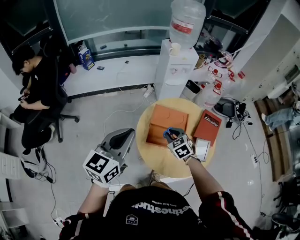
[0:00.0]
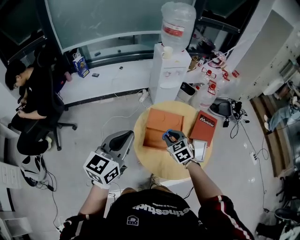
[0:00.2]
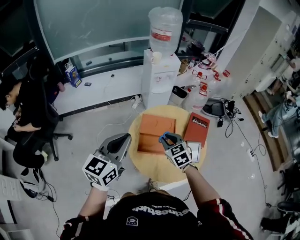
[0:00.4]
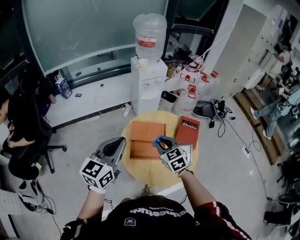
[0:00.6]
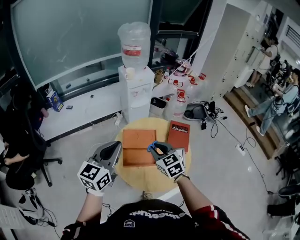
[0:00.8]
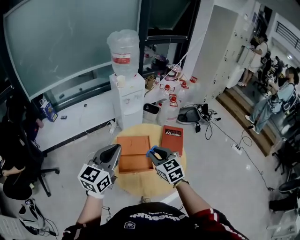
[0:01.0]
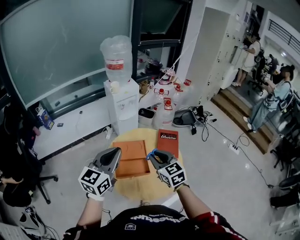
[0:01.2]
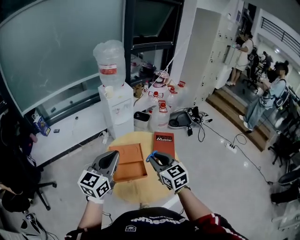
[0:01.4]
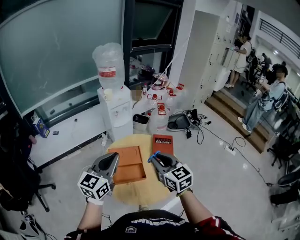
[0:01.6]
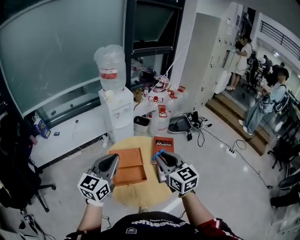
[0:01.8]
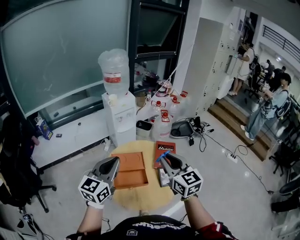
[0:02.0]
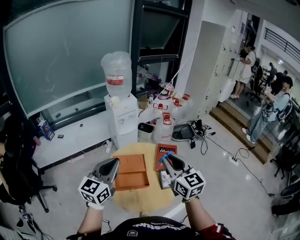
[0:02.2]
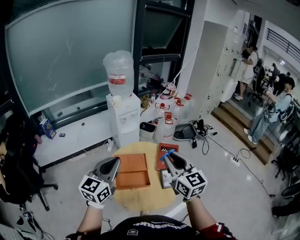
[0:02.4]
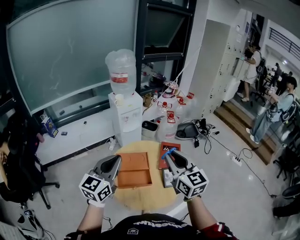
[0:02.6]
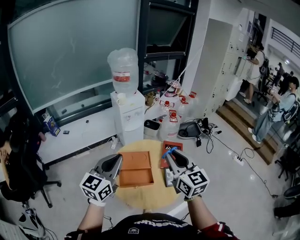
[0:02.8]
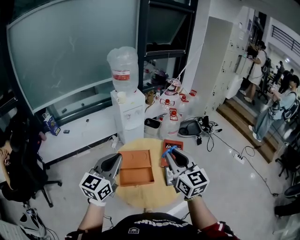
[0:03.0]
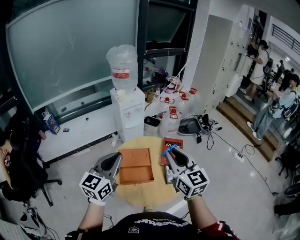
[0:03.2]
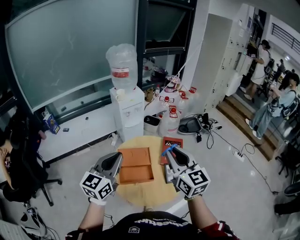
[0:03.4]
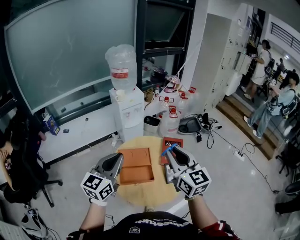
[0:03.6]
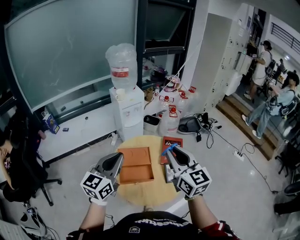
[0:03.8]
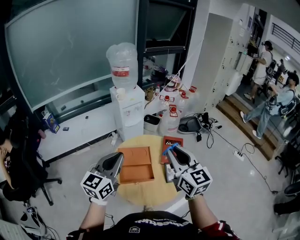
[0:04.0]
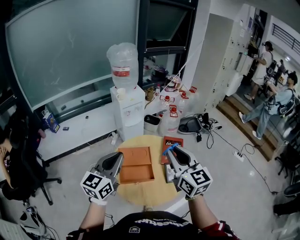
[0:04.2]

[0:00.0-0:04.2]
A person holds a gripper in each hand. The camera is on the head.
0.0 to 1.4 s: The right gripper travels upward and to the right by about 25 cm, and swivels some 40 degrees; the left gripper shifts about 15 cm to the right and forward.
1.4 to 2.8 s: The right gripper shifts about 10 cm upward.
2.8 to 4.2 s: There are only small adjustments of the grippers.

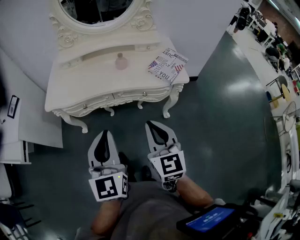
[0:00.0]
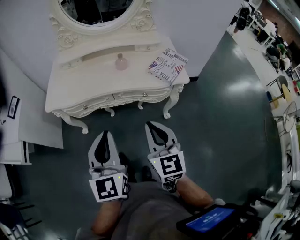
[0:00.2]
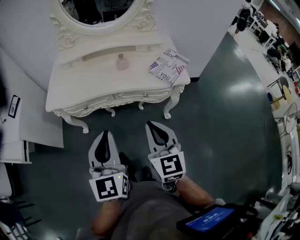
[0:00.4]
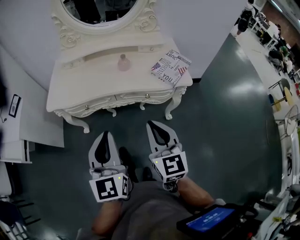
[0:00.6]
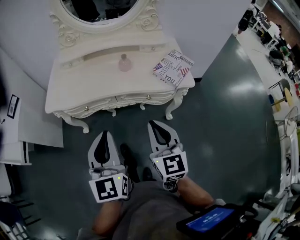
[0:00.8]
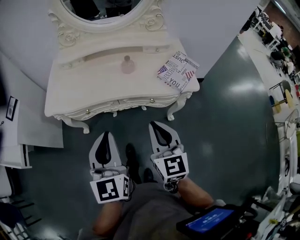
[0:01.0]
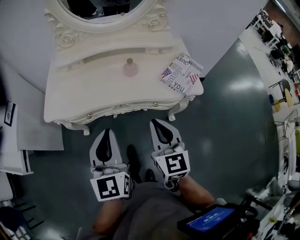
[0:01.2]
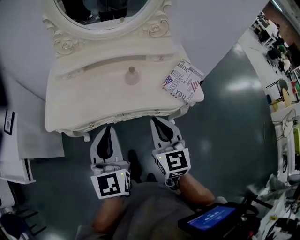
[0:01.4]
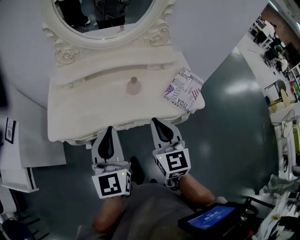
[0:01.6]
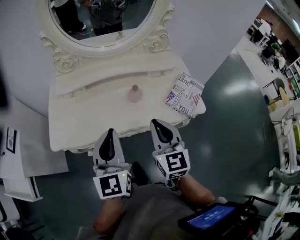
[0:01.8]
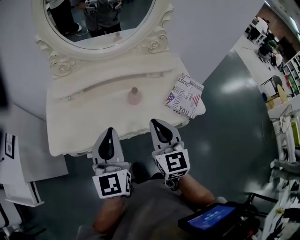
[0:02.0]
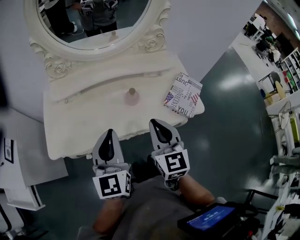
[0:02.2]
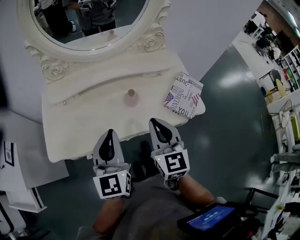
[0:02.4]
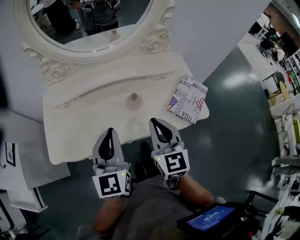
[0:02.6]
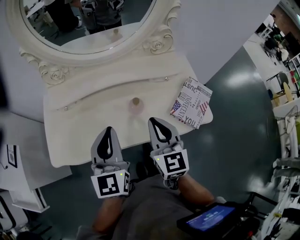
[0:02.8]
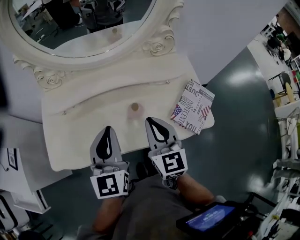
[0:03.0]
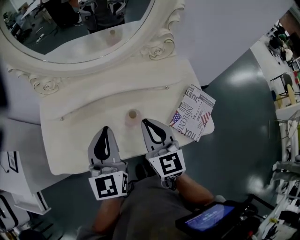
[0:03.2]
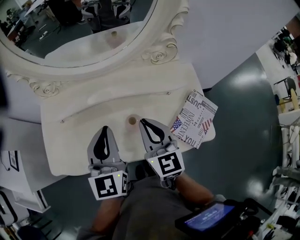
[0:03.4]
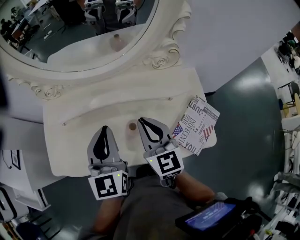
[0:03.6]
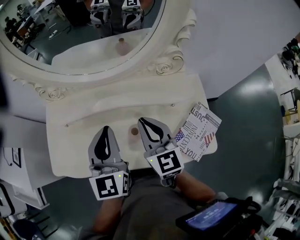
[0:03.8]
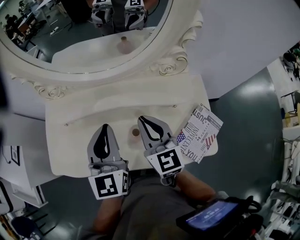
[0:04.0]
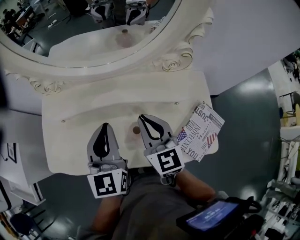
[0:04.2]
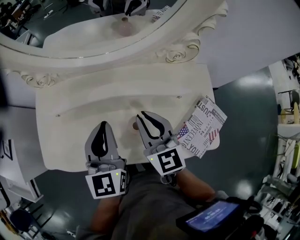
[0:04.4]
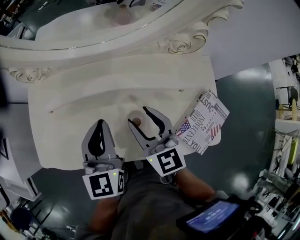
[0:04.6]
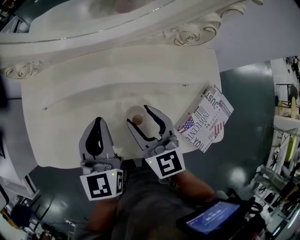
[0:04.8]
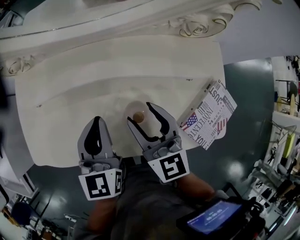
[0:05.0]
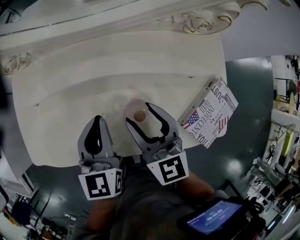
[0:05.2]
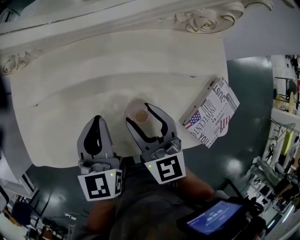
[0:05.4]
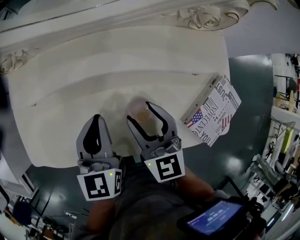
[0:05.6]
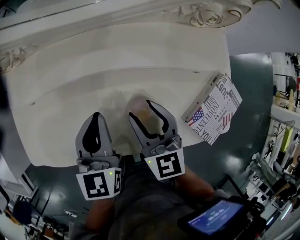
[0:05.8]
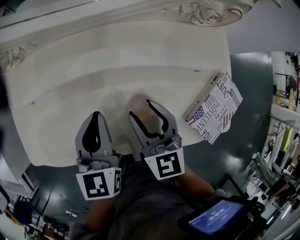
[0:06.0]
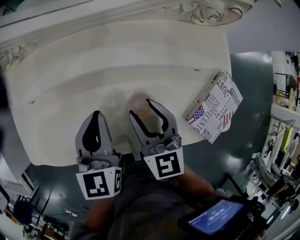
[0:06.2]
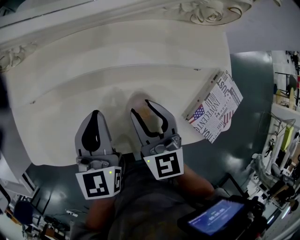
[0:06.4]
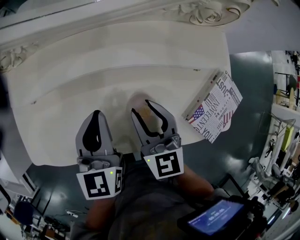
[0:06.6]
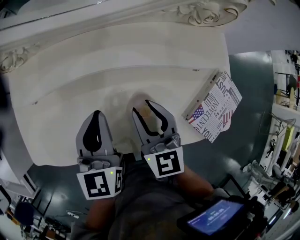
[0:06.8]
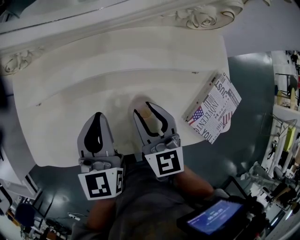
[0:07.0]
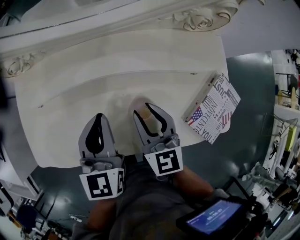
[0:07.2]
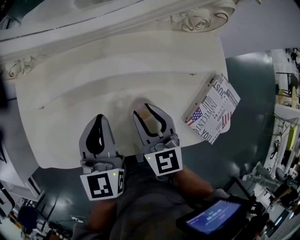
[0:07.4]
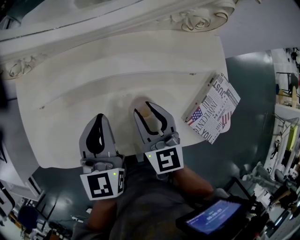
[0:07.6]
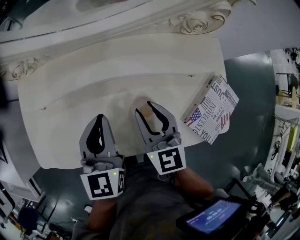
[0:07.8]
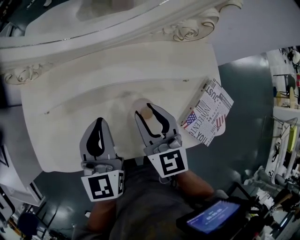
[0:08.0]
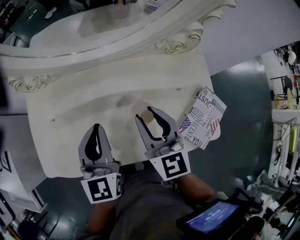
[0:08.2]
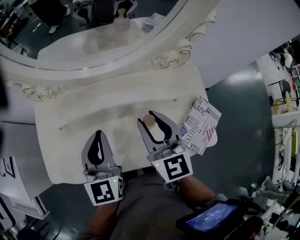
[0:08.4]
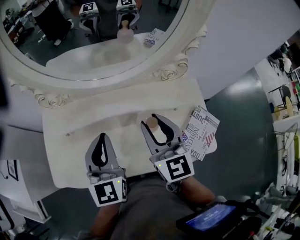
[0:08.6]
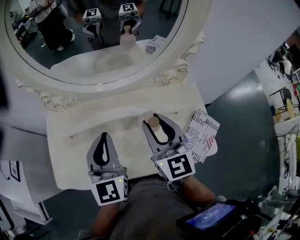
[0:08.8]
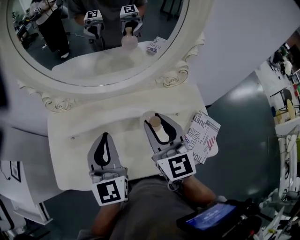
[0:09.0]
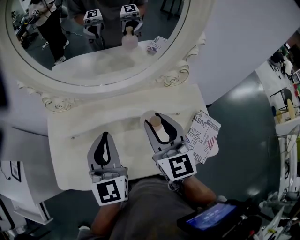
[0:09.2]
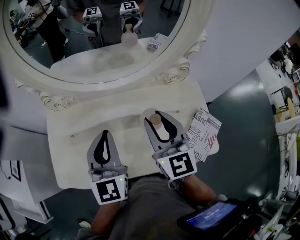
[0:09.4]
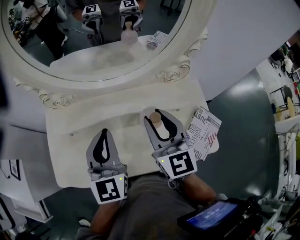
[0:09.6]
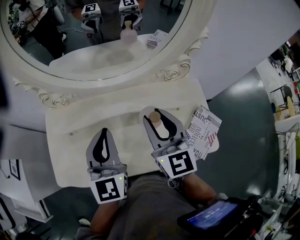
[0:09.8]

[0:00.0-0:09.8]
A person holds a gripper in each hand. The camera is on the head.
0.0 to 1.4 s: Both grippers move forward, roughly 15 cm.
1.4 to 2.8 s: The grippers both shift forward by about 15 cm.
2.8 to 4.2 s: Both grippers move forward, some 15 cm.
4.2 to 5.6 s: Both grippers travel together downward, roughly 10 cm. The right gripper opens its fingers.
5.6 to 7.0 s: There are only small adjustments of the grippers.
7.0 to 8.4 s: Both grippers travel together upward, approximately 10 cm.
8.4 to 9.8 s: The grippers both shift upward by about 5 cm.

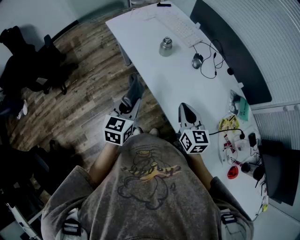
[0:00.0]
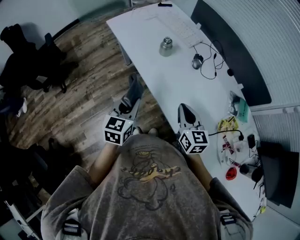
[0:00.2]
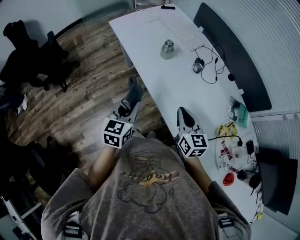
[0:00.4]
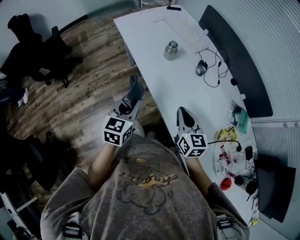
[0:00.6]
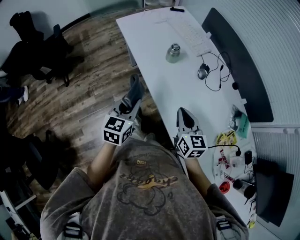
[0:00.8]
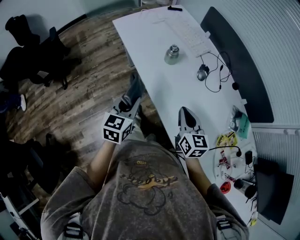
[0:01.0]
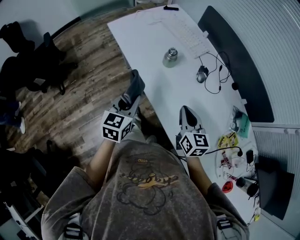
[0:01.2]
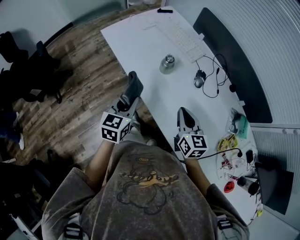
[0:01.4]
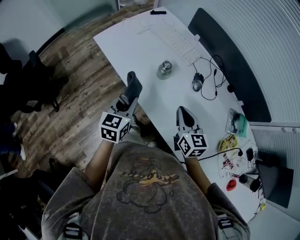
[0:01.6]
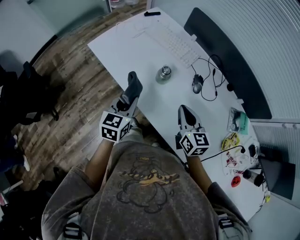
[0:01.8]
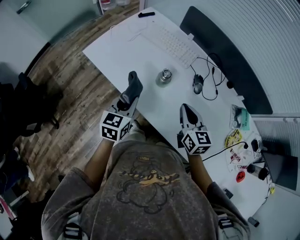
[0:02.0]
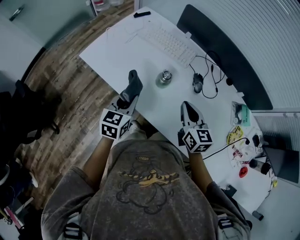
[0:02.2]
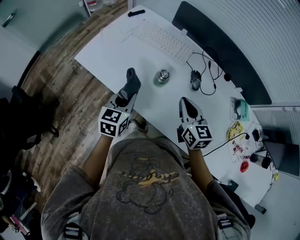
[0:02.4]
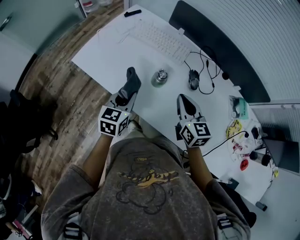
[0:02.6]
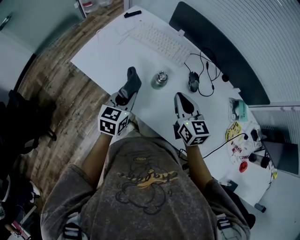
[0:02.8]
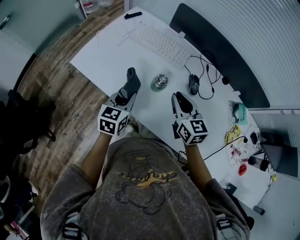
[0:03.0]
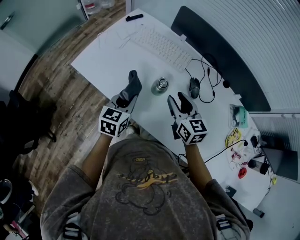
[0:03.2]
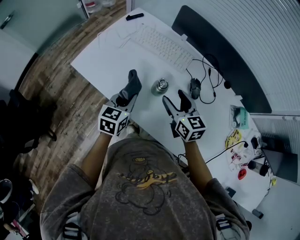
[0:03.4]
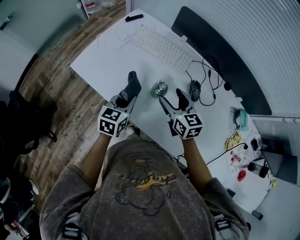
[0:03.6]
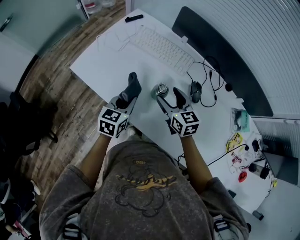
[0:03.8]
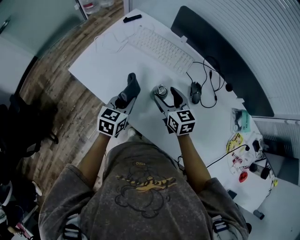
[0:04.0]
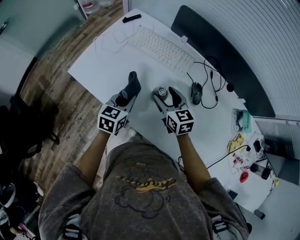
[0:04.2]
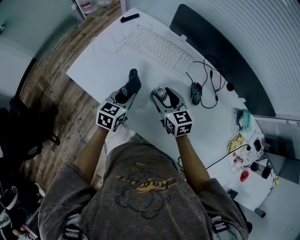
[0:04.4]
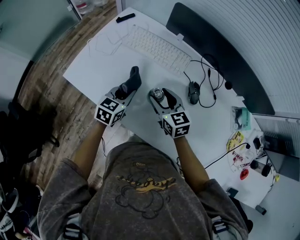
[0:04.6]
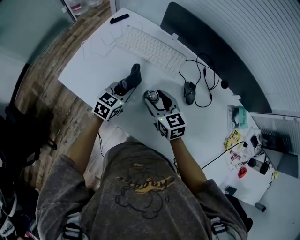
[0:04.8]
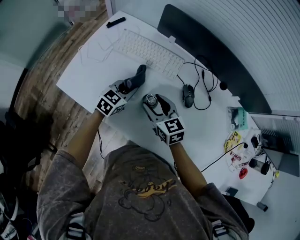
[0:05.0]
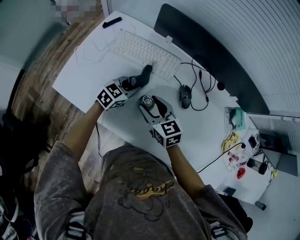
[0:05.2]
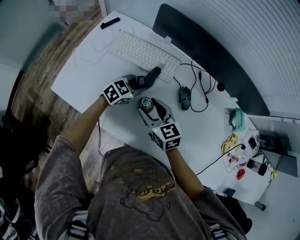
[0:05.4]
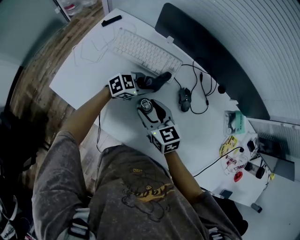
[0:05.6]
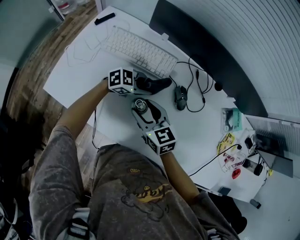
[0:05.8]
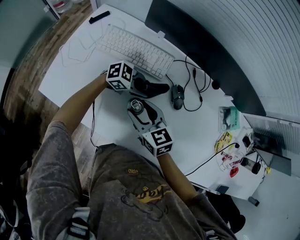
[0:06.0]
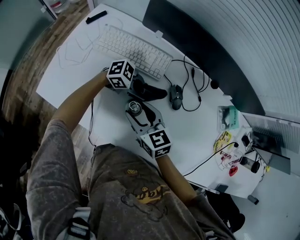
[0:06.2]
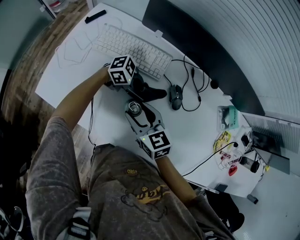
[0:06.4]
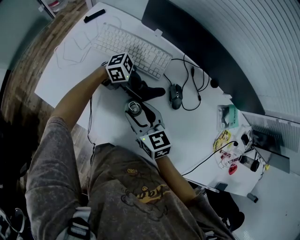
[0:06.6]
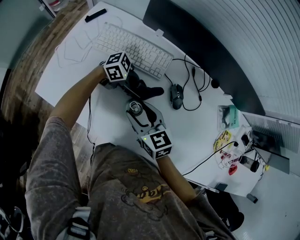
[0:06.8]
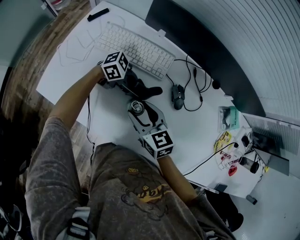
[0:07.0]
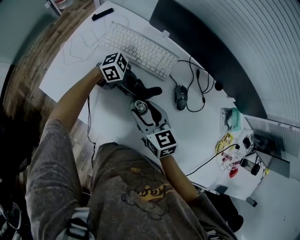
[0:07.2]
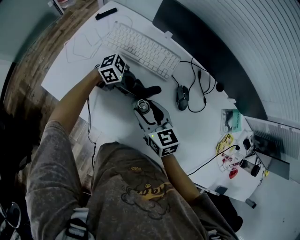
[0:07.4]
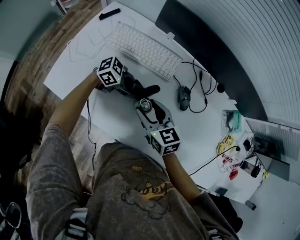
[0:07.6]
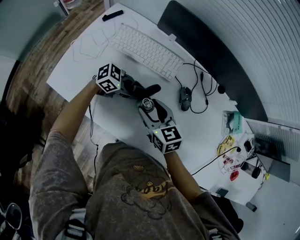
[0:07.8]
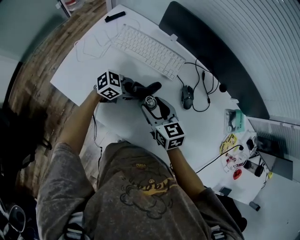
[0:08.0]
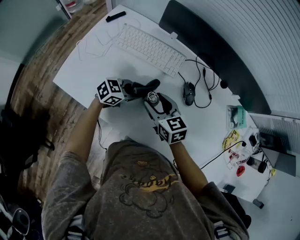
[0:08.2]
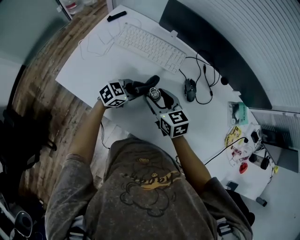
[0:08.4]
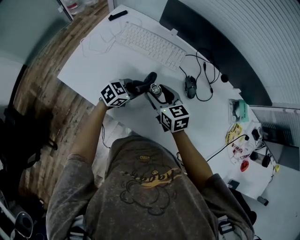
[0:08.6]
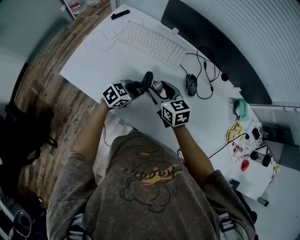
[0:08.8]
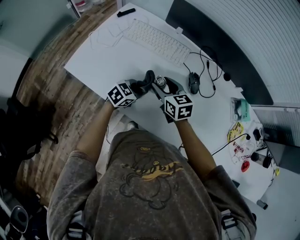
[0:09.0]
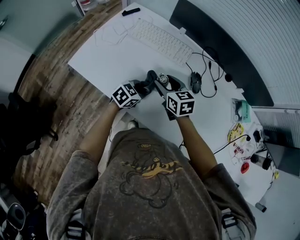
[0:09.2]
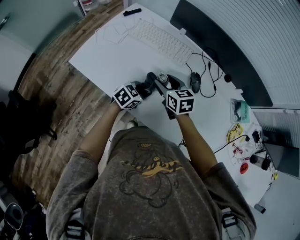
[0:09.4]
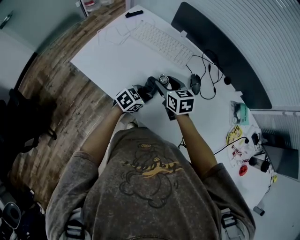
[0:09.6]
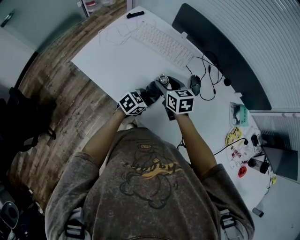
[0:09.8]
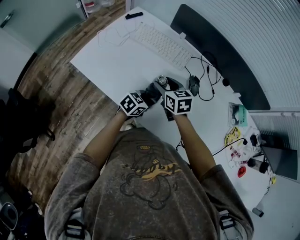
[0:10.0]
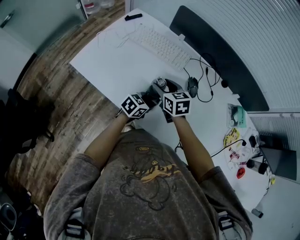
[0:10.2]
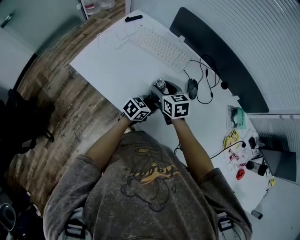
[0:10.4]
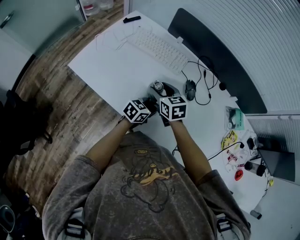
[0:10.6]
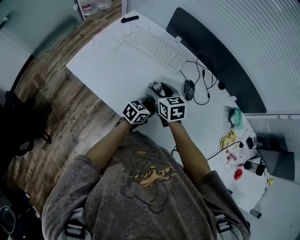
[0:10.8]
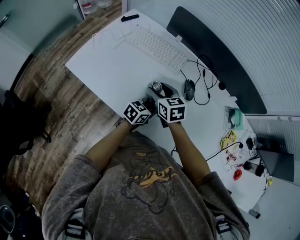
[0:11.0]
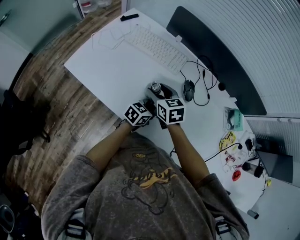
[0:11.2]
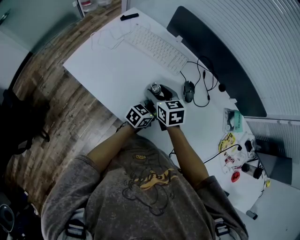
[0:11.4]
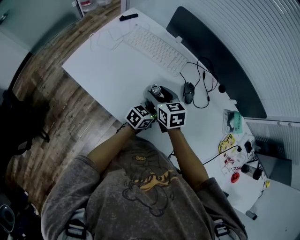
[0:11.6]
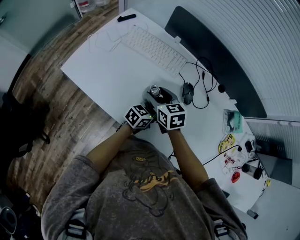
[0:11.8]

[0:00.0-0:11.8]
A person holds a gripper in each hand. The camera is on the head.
0.0 to 1.4 s: Both grippers move forward, some 15 cm.
1.4 to 3.0 s: The left gripper heads forward, covering about 15 cm, and rotates about 20 degrees; the right gripper heads forward and to the left, covering roughly 15 cm.
3.0 to 4.4 s: The left gripper shifts some 10 cm forward. The right gripper is displaced forward, downward and to the left by roughly 10 cm, and opens up.
4.4 to 6.0 s: The left gripper changes place by some 20 cm, and changes its angle by approximately 80 degrees.
6.0 to 7.4 s: The left gripper moves roughly 5 cm.
7.4 to 8.8 s: The left gripper moves about 5 cm, and changes its angle by approximately 50 degrees.
8.8 to 10.4 s: The left gripper shifts roughly 10 cm to the right.
10.4 to 11.8 s: The left gripper ends up roughly 5 cm from where it was.
